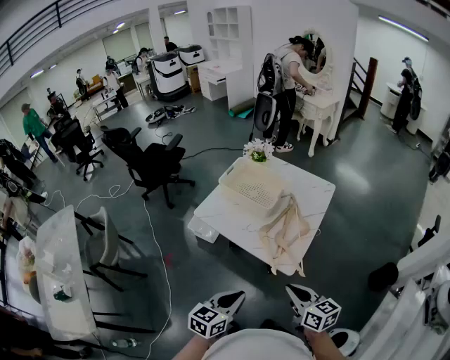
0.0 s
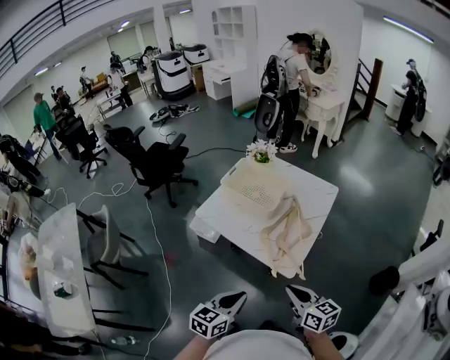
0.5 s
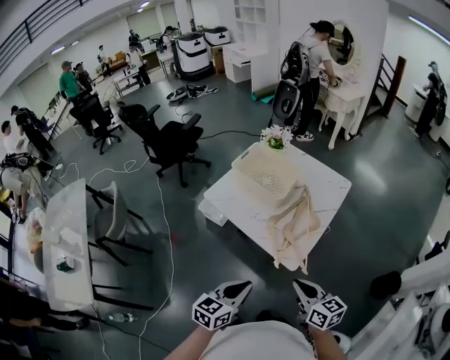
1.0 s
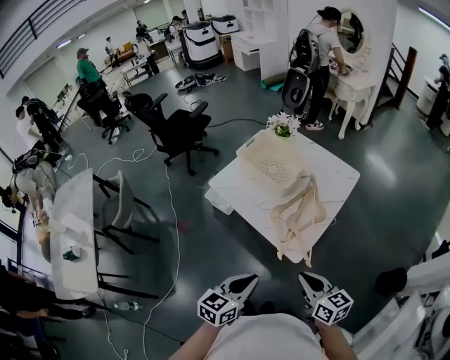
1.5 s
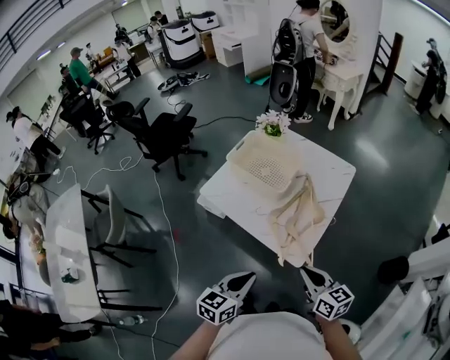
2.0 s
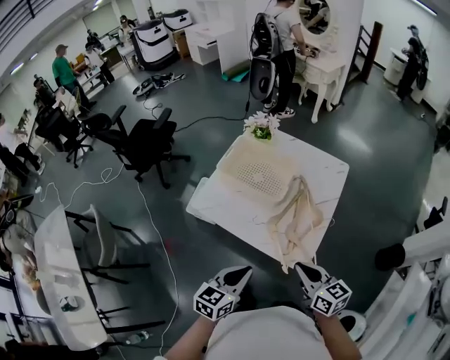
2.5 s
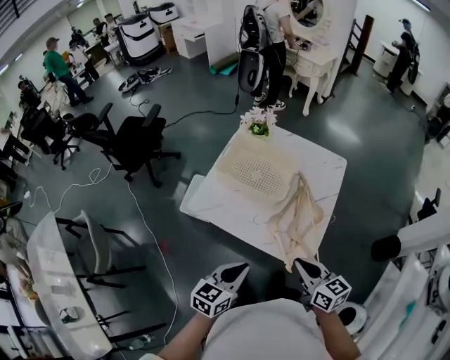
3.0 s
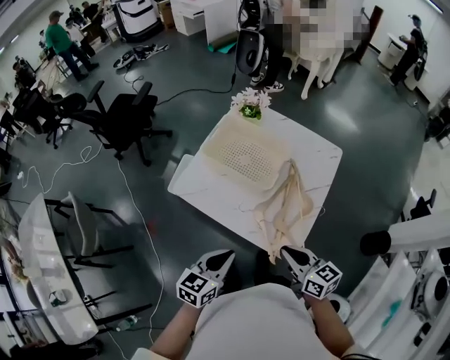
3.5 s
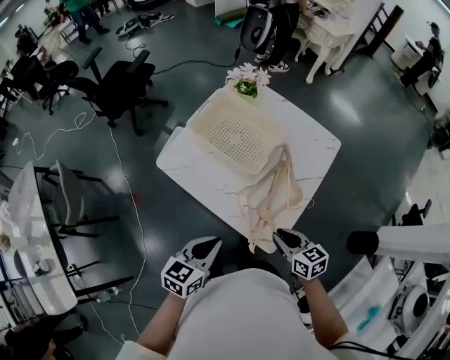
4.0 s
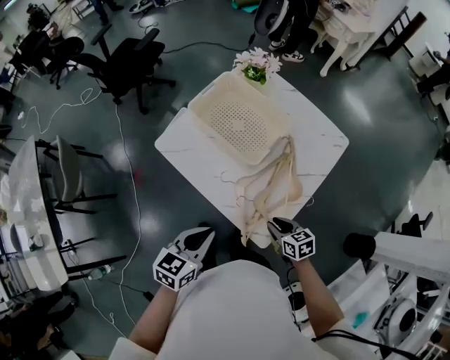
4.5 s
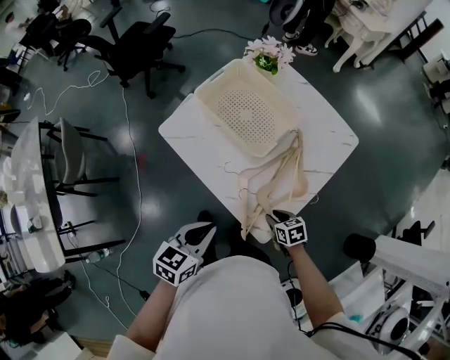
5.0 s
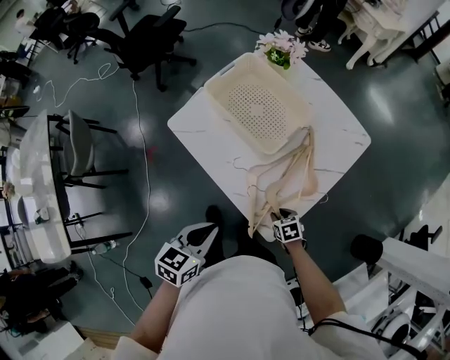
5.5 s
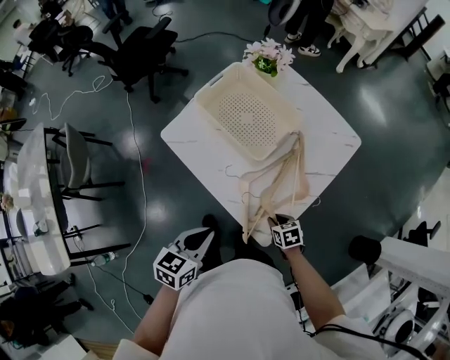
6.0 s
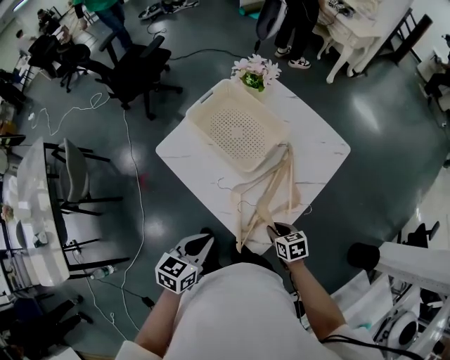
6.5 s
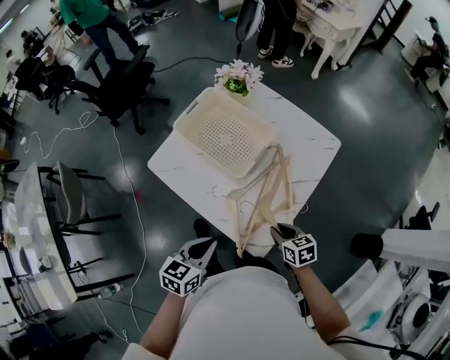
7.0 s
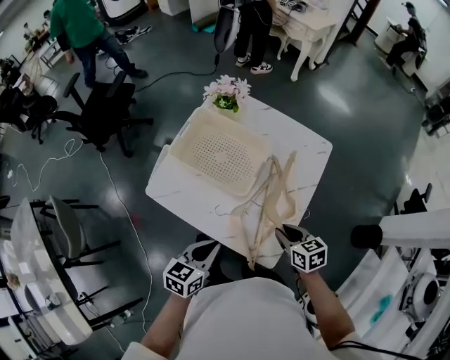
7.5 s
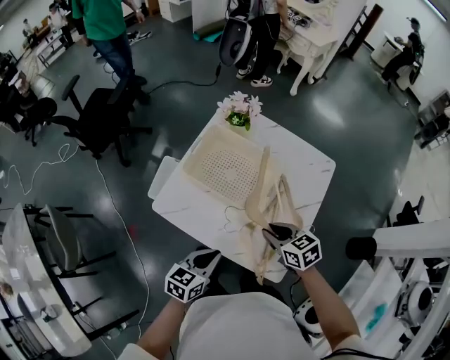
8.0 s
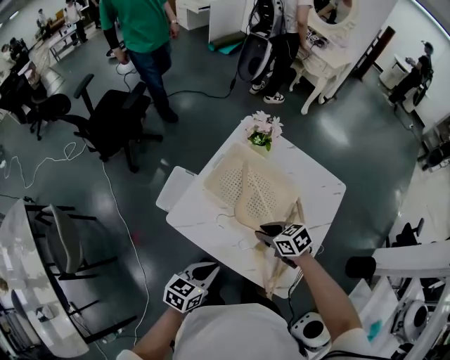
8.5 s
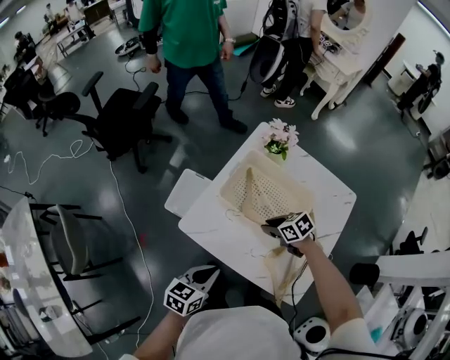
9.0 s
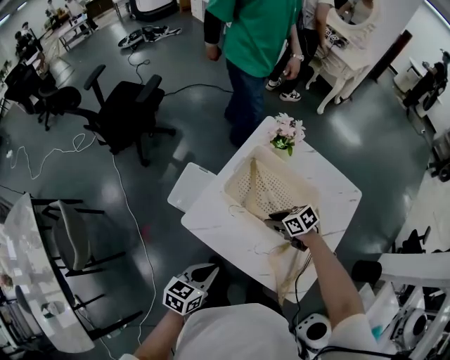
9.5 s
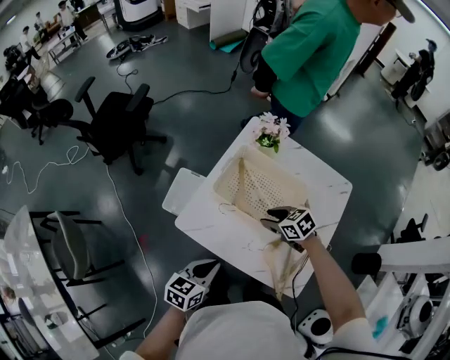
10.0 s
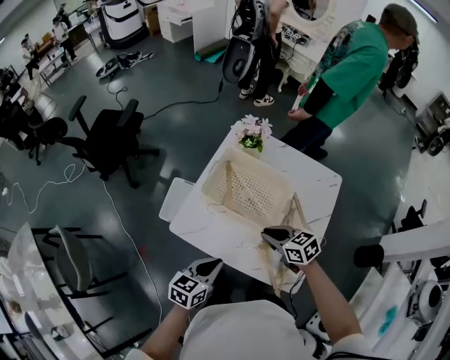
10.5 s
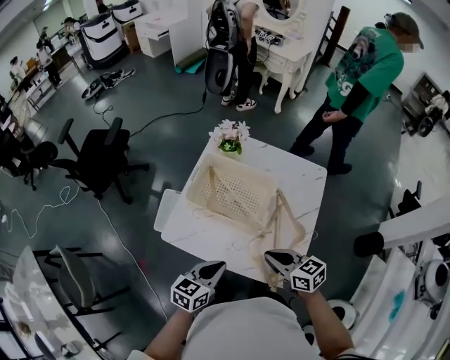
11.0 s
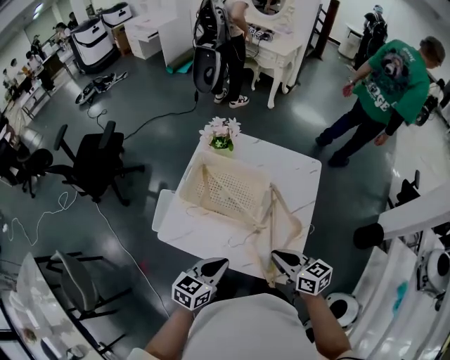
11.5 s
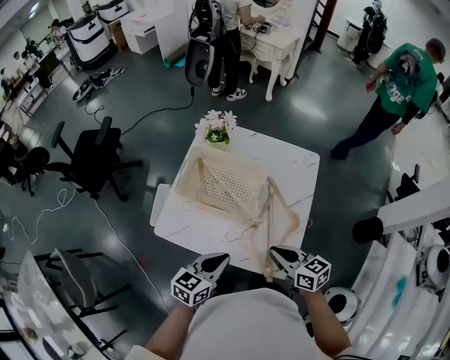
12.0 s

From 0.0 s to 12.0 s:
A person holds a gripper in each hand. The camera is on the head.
From 0.0 s to 2.0 s: The two grippers go about 10 cm forward.
From 2.0 s to 4.0 s: The right gripper heads forward and downward, covering roughly 20 cm, while the left gripper travels forward by approximately 15 cm.
From 4.0 s to 6.0 s: The right gripper shifts some 20 cm downward, and turns by some 30 degrees.
From 6.0 s to 8.0 s: The left gripper goes some 15 cm forward. Meanwhile the right gripper is displaced upward, forward and to the left by roughly 30 cm, and rotates roughly 20 degrees.
From 8.0 s to 10.0 s: The right gripper ends up some 15 cm from where it was, and opens. Meanwhile the left gripper moves roughly 10 cm.
From 10.0 s to 12.0 s: The right gripper shifts some 25 cm backward, to the right and upward, rotates approximately 40 degrees, and closes up. The left gripper heads to the right, covering some 15 cm.

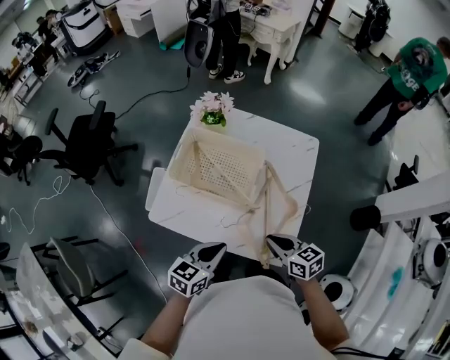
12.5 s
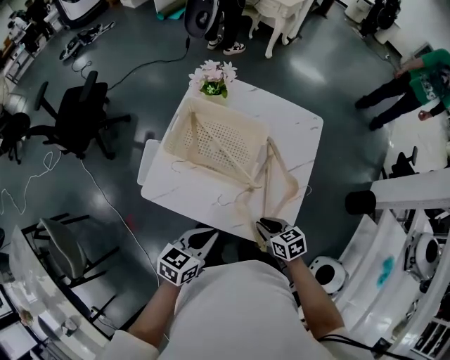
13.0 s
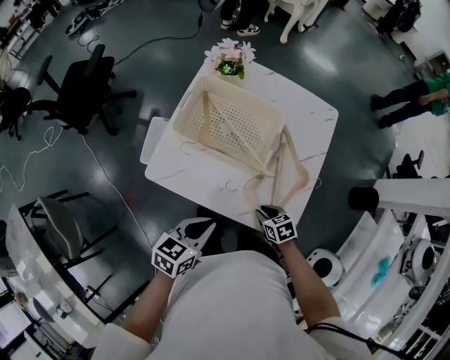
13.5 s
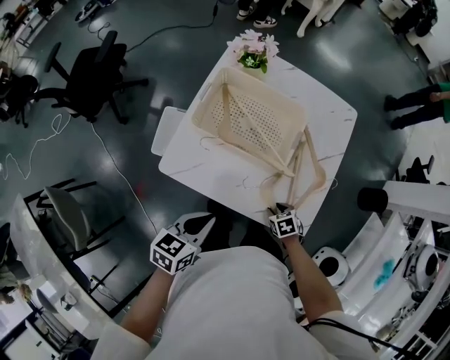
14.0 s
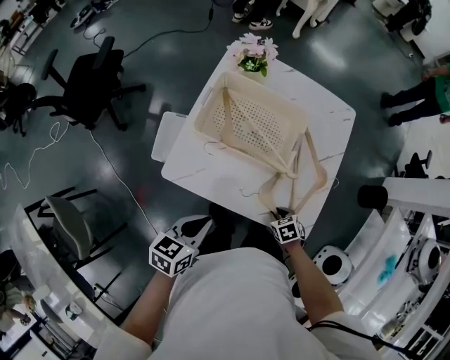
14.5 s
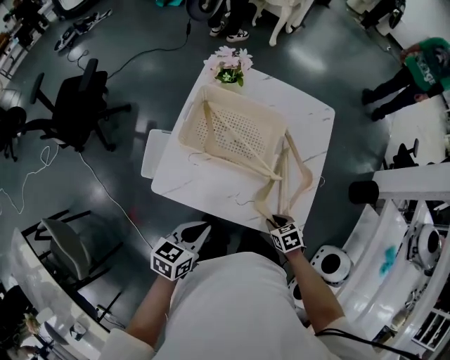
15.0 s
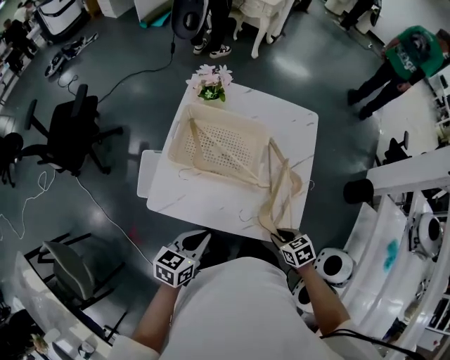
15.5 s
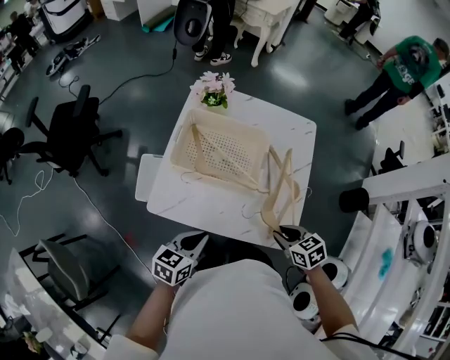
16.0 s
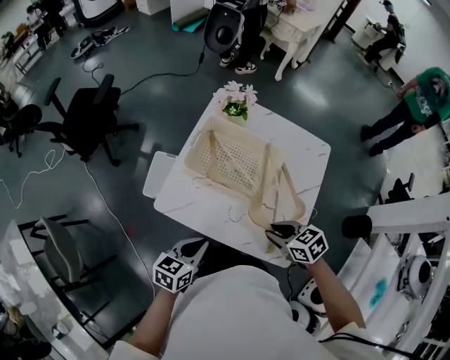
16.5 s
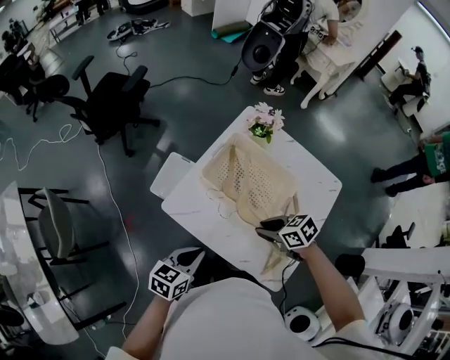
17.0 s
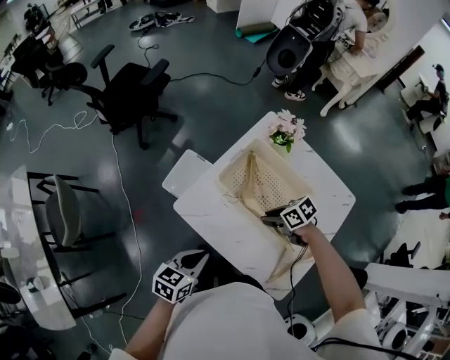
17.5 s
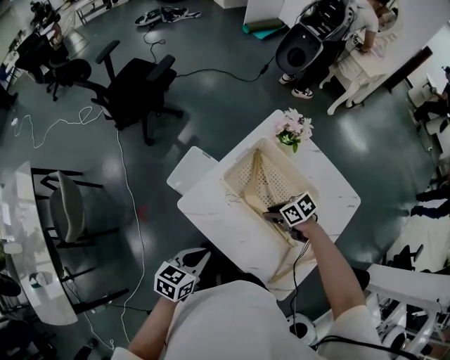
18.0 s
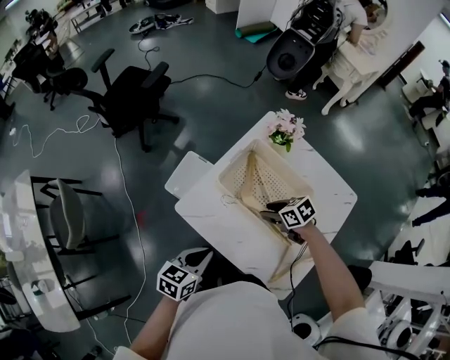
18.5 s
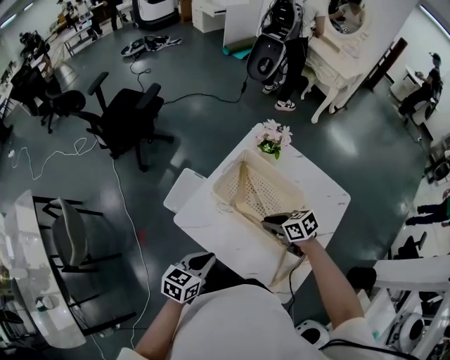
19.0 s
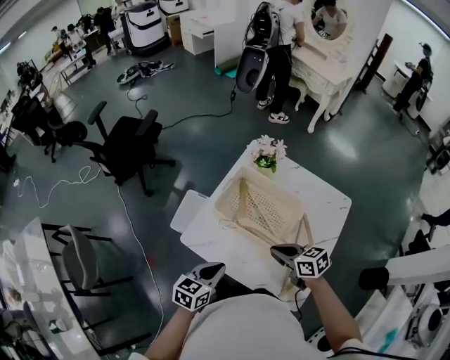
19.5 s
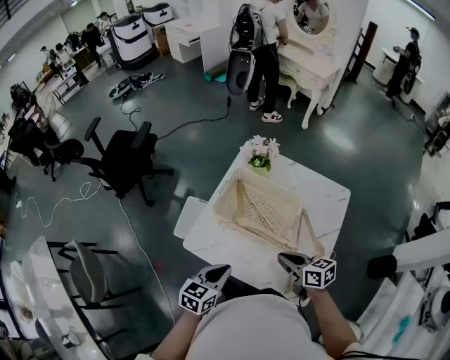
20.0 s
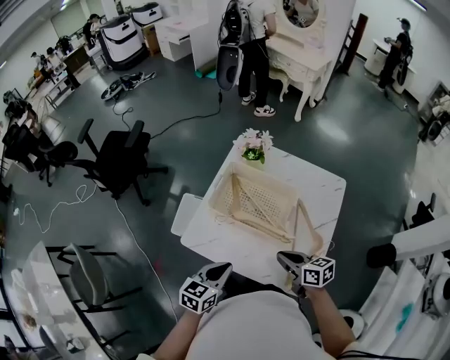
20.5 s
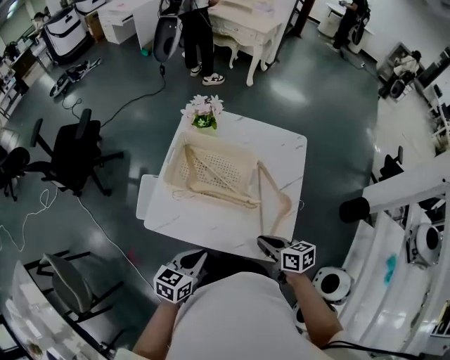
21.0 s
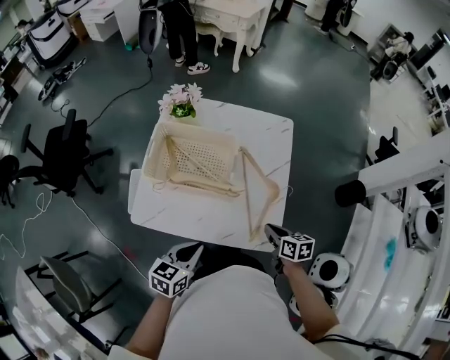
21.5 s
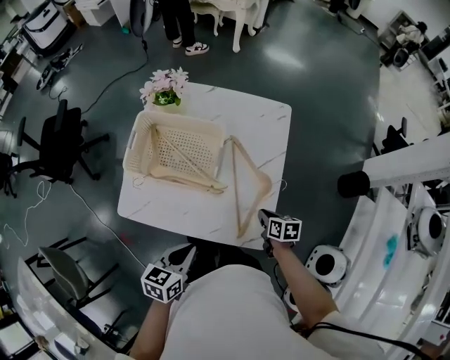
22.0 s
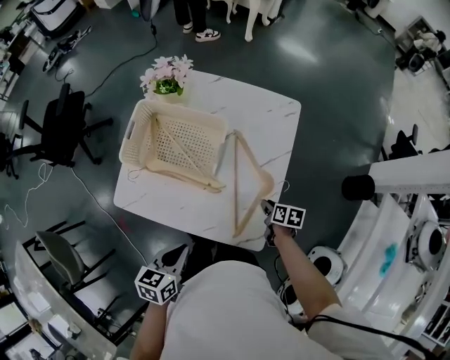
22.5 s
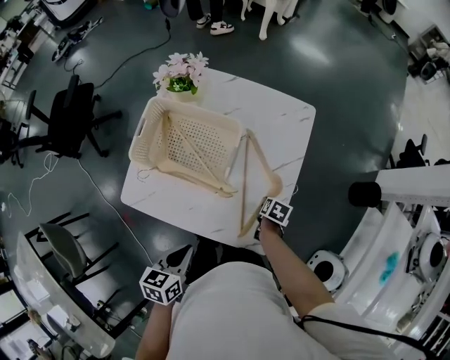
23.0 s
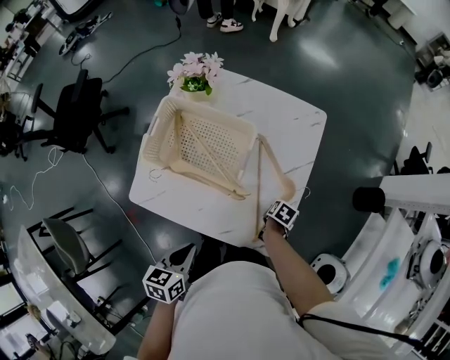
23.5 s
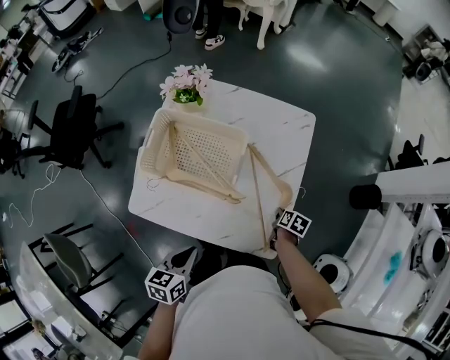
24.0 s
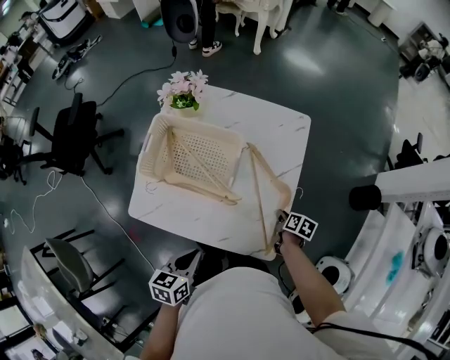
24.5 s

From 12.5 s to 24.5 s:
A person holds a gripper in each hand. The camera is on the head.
From 12.5 s to 14.5 s: The right gripper goes about 25 cm downward, and tilts its fingers some 40 degrees downward; the left gripper goes some 15 cm to the left and downward.
From 14.5 s to 16.5 s: The right gripper goes roughly 25 cm upward, and turns by roughly 30 degrees.
From 16.5 s to 18.5 s: The right gripper moves roughly 20 cm, and swivels roughly 20 degrees.
From 18.5 s to 20.5 s: The right gripper moves backward and upward, roughly 20 cm, turns by roughly 40 degrees, and closes; the left gripper ends up approximately 5 cm from where it was.
From 20.5 s to 22.5 s: The left gripper moves to the right and downward, some 15 cm, while the right gripper travels to the right and downward by about 35 cm, and swivels roughly 40 degrees.
From 22.5 s to 24.5 s: The right gripper opens and closes again.

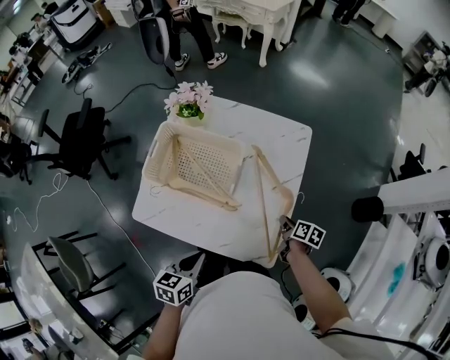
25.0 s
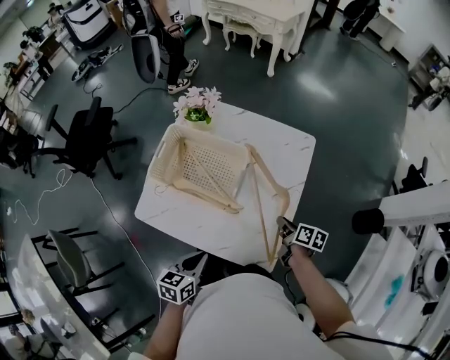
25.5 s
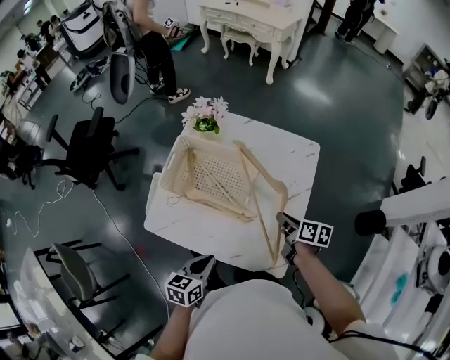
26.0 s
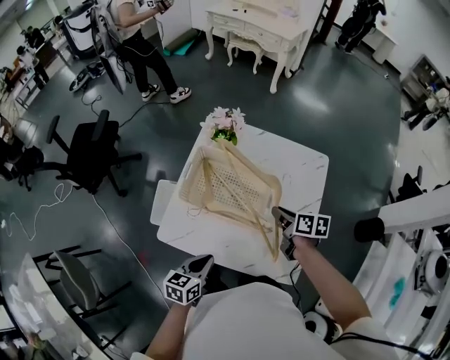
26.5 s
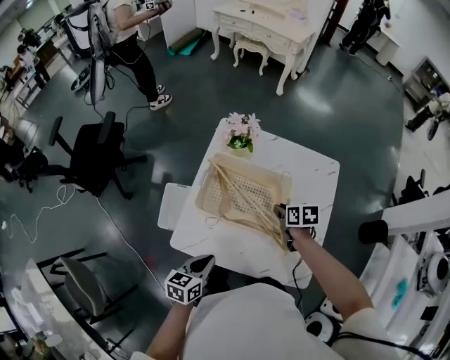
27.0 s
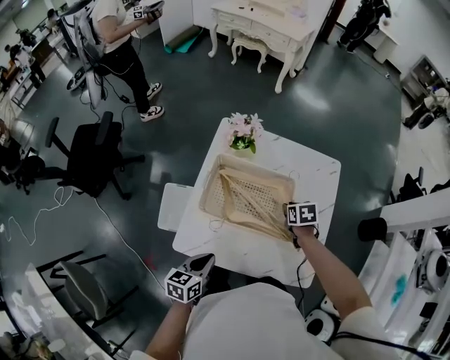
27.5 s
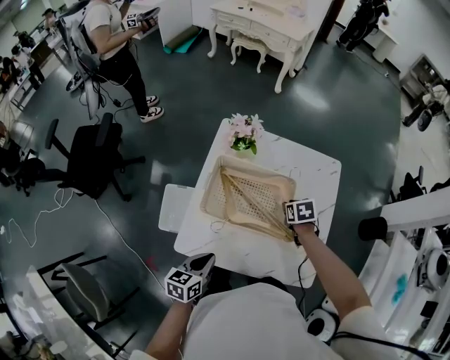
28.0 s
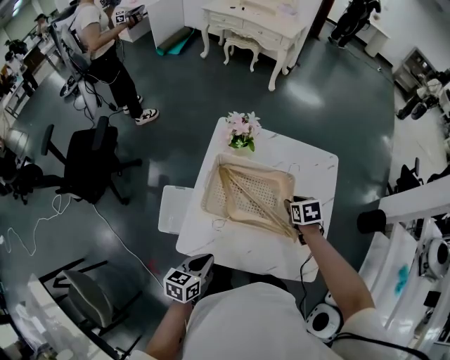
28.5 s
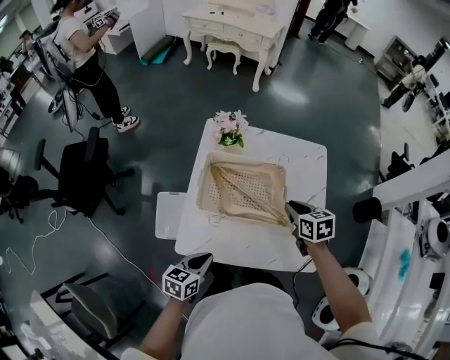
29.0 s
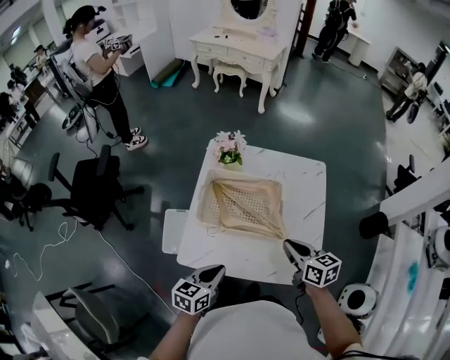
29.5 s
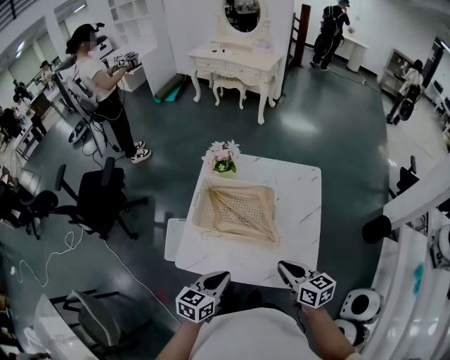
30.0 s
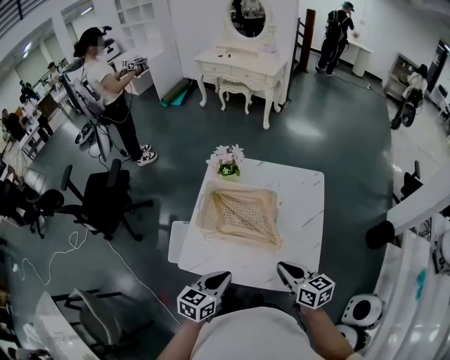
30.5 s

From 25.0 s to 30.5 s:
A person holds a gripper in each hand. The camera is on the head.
From 25.0 s to 27.0 s: The left gripper goes roughly 20 cm to the left and forward, while the right gripper goes some 30 cm to the left, forward and upward, and changes its angle by roughly 30 degrees.
From 28.5 s to 30.5 s: The right gripper heads backward and upward, covering about 30 cm, tilts its fingers roughly 40 degrees upward, and closes up. The left gripper moves to the right and upward, about 15 cm.
